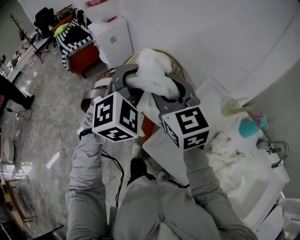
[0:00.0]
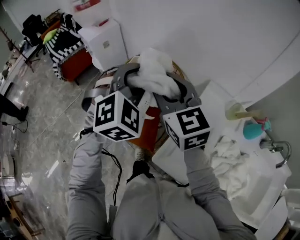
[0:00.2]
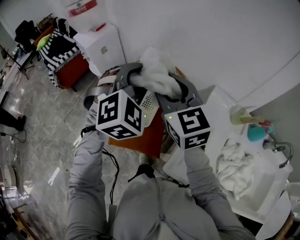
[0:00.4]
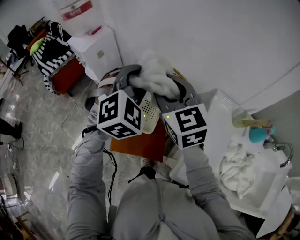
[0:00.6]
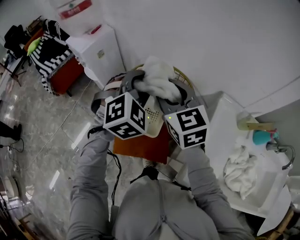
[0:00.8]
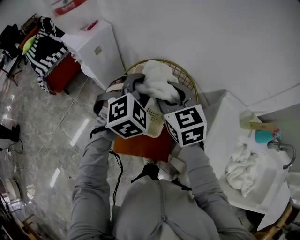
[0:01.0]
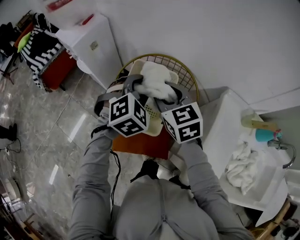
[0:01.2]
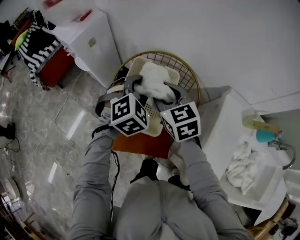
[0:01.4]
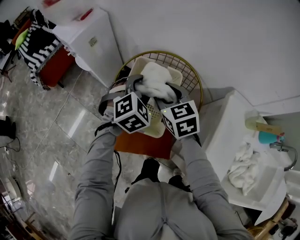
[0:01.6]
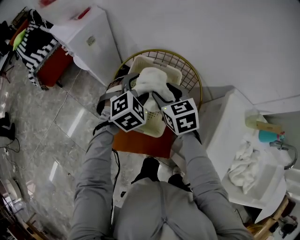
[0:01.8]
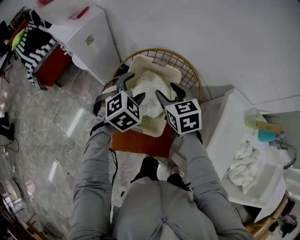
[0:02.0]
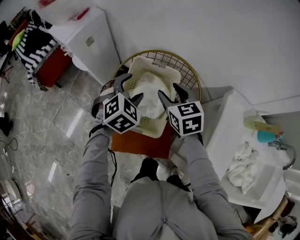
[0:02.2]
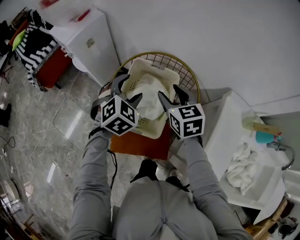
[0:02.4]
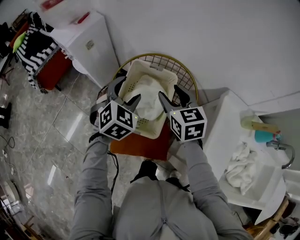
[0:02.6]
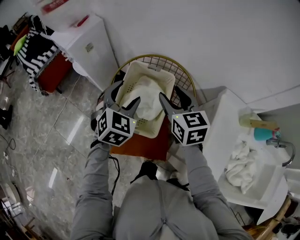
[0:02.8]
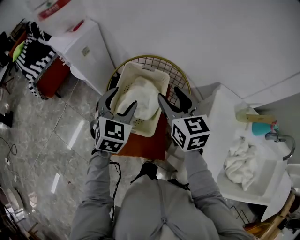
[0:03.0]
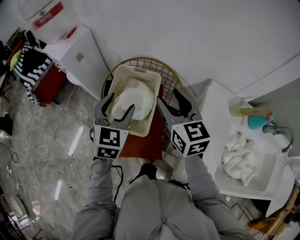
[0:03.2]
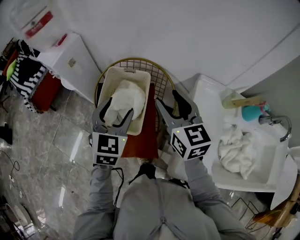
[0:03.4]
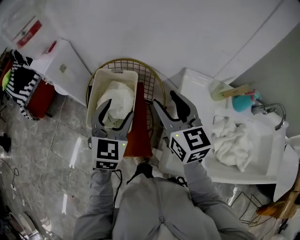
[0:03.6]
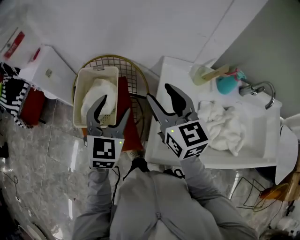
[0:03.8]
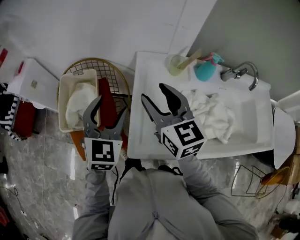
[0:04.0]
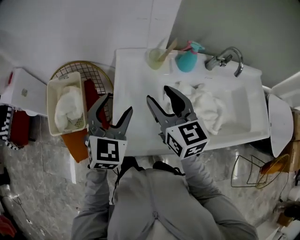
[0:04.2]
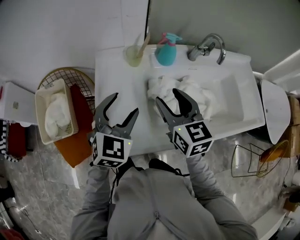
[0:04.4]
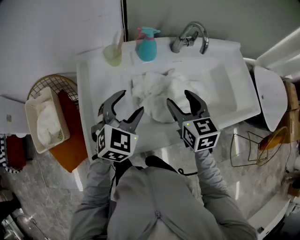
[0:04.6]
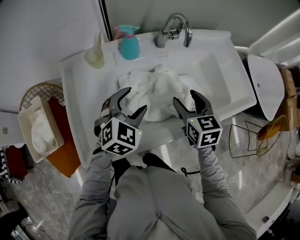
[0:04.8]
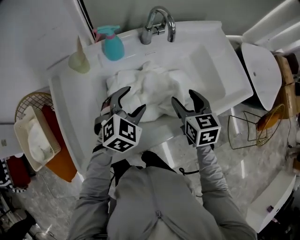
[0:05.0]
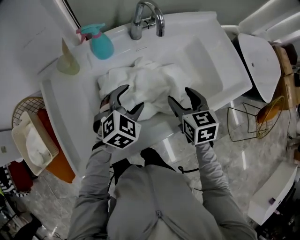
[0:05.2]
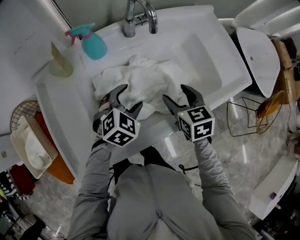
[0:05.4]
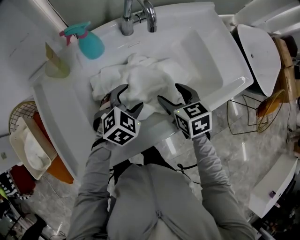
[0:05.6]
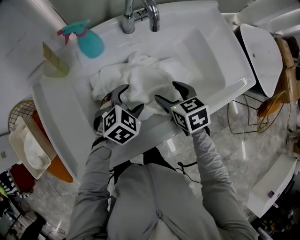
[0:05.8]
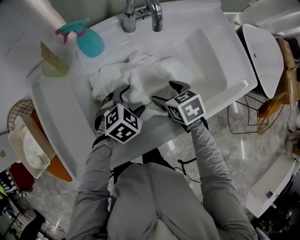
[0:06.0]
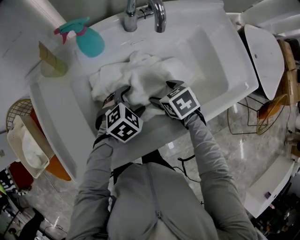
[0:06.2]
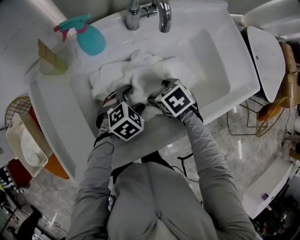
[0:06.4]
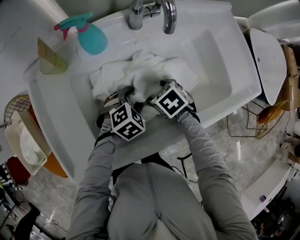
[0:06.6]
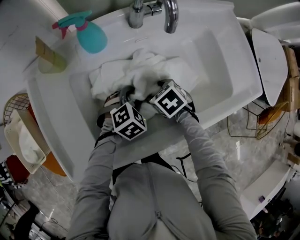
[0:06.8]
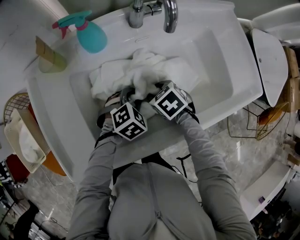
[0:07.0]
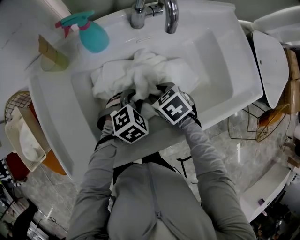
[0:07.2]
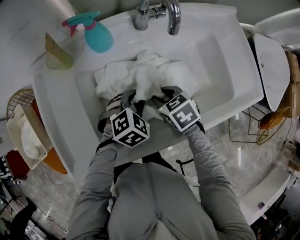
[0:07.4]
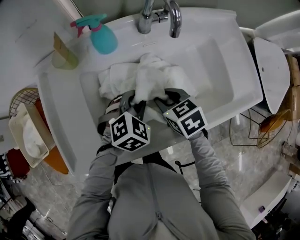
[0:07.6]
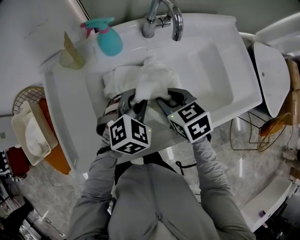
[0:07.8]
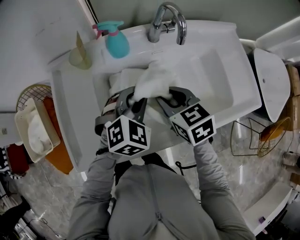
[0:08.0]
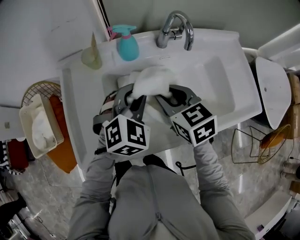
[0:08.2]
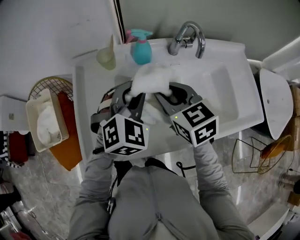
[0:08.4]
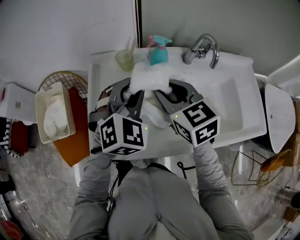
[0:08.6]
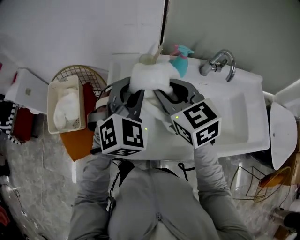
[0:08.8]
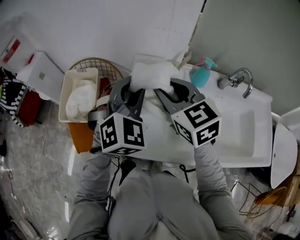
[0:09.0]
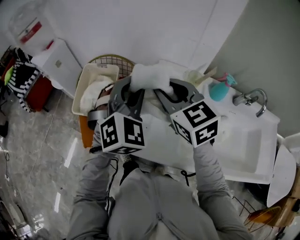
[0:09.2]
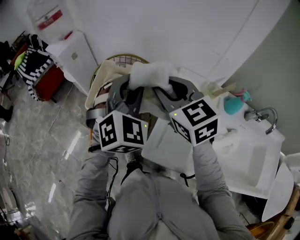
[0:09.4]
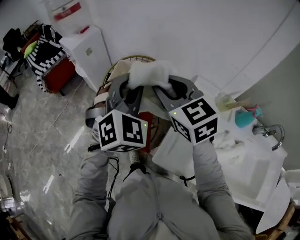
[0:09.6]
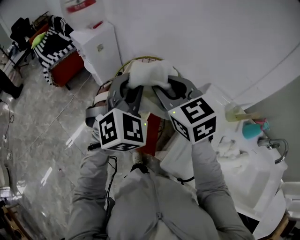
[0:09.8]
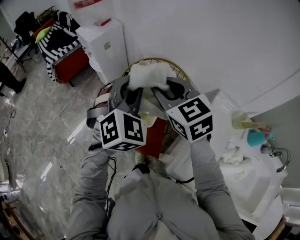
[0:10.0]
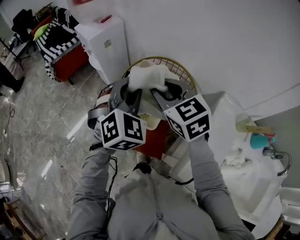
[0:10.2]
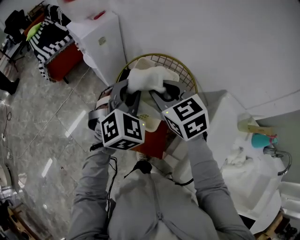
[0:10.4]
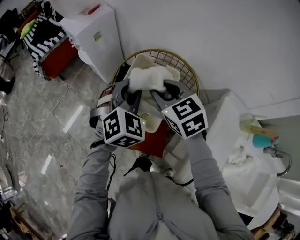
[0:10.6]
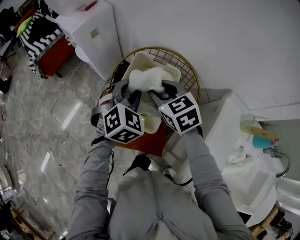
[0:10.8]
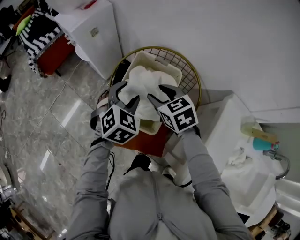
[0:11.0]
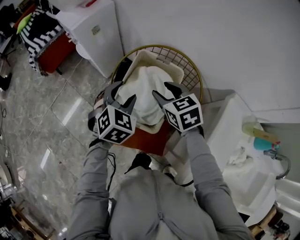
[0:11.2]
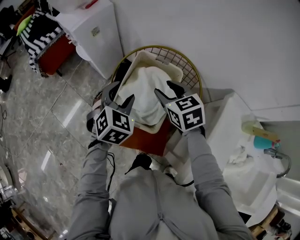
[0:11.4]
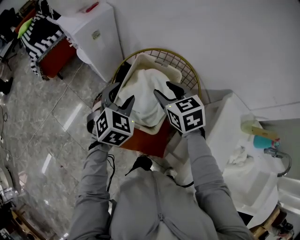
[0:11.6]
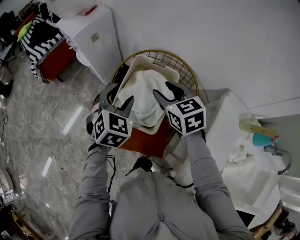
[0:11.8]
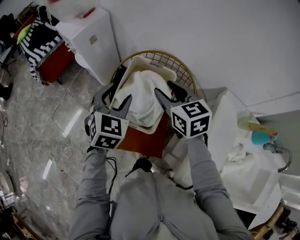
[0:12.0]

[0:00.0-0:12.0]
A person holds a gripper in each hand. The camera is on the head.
0:00.0 to 0:01.6: Both grippers move forward, downward and to the left, about 35 cm. The left gripper rotates approximately 30 degrees. Meanwhile the right gripper changes its angle by approximately 30 degrees.
0:01.6 to 0:03.0: The right gripper shifts approximately 10 cm upward and to the right. The left gripper shifts about 10 cm upward and backward, and turns by roughly 30 degrees.
0:03.0 to 0:04.4: The pair of grippers is taken roughly 50 cm. The right gripper rotates about 30 degrees; the left gripper swivels roughly 40 degrees.
0:04.4 to 0:06.0: The grippers both shift to the right and downward by roughly 30 cm. The right gripper tilts its fingers approximately 40 degrees downward. The left gripper rotates some 40 degrees.
0:06.0 to 0:07.6: The right gripper goes downward and returns, about 5 cm each way, and closes. The left gripper closes up.
0:07.6 to 0:09.0: The right gripper shifts by roughly 40 cm, and angles its fingers upward, by roughly 30 degrees; the left gripper ends up roughly 40 cm from where it was, and turns by approximately 50 degrees.
0:09.0 to 0:10.4: Both grippers are carried approximately 40 cm. The right gripper turns by some 30 degrees, while the left gripper turns by about 30 degrees.
0:10.4 to 0:12.0: The left gripper heads downward, covering about 5 cm, and opens its fingers.

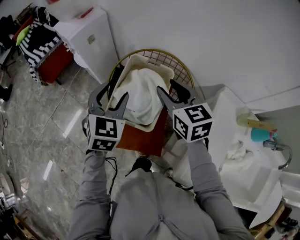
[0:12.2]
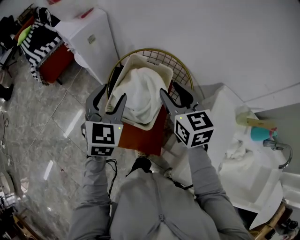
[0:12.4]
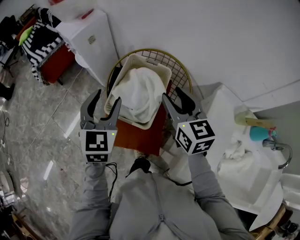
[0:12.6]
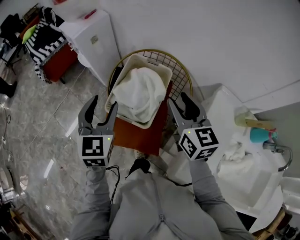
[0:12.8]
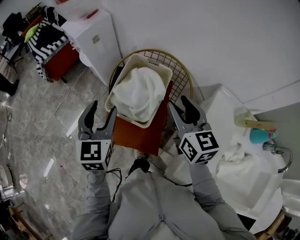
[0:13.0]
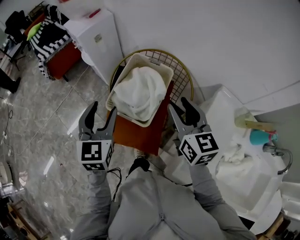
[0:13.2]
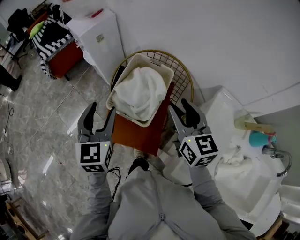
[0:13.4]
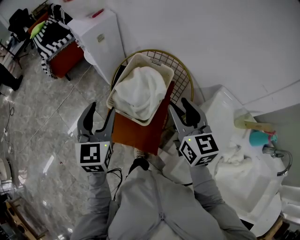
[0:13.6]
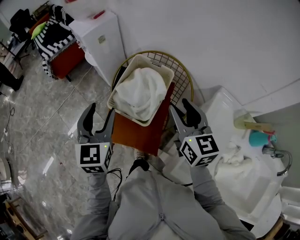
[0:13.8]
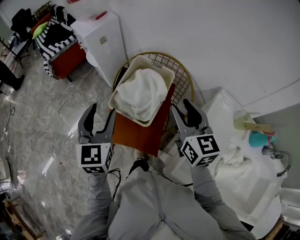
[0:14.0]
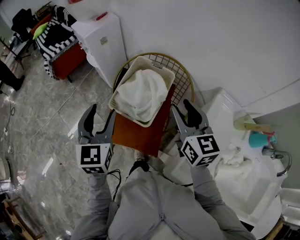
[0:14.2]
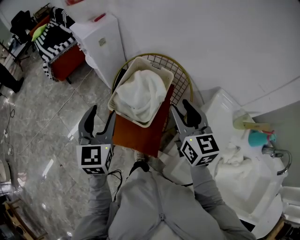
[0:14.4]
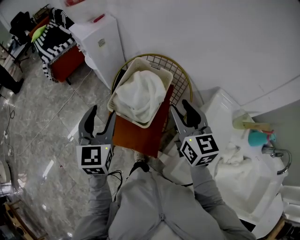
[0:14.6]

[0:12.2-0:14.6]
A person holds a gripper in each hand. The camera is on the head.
0:12.2 to 0:13.4: Both grippers travel together backward, some 10 cm. The left gripper turns by about 20 degrees.
0:13.4 to 0:14.6: The grippers stay close to where they were, moving slightly.

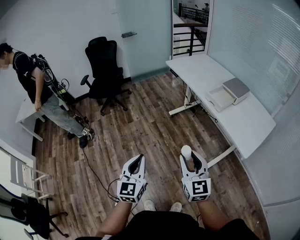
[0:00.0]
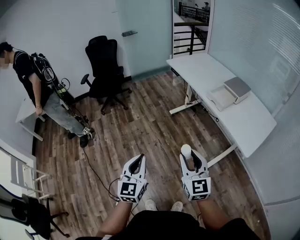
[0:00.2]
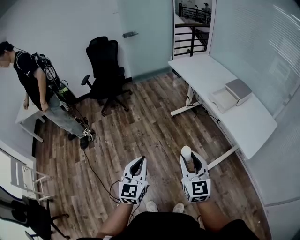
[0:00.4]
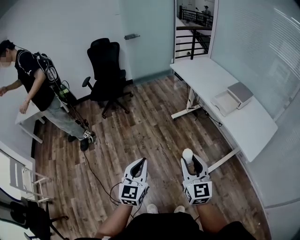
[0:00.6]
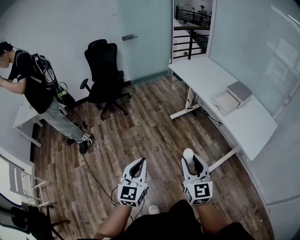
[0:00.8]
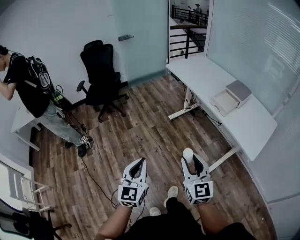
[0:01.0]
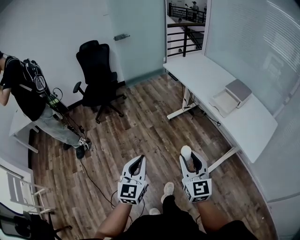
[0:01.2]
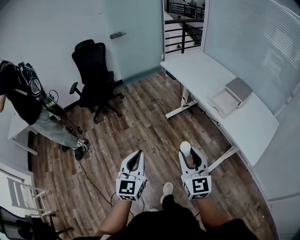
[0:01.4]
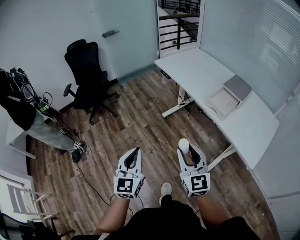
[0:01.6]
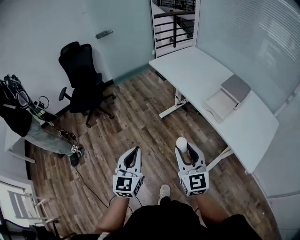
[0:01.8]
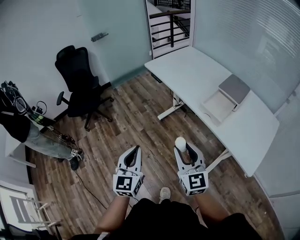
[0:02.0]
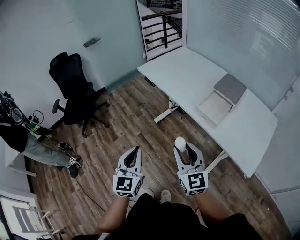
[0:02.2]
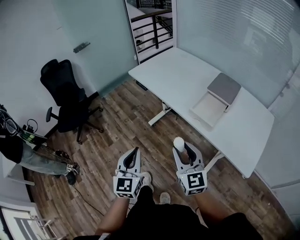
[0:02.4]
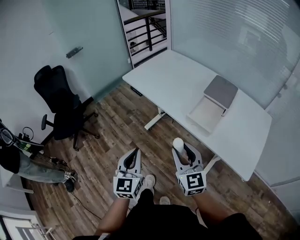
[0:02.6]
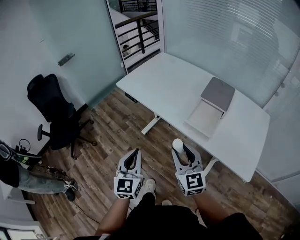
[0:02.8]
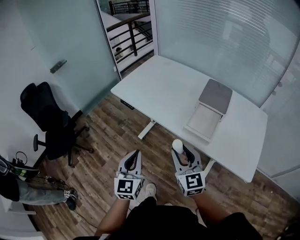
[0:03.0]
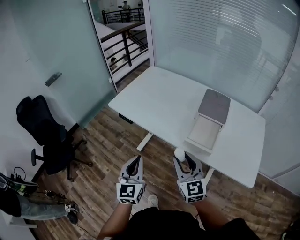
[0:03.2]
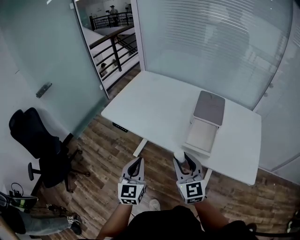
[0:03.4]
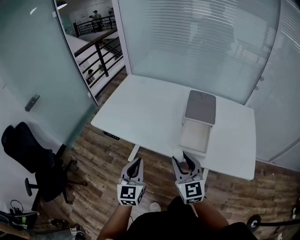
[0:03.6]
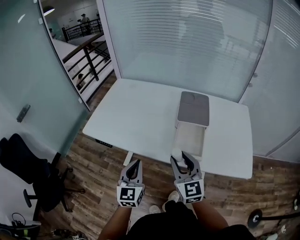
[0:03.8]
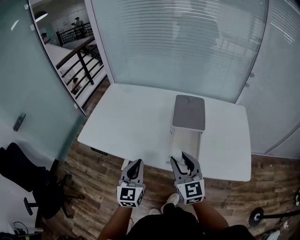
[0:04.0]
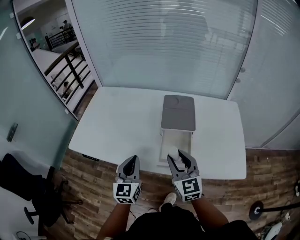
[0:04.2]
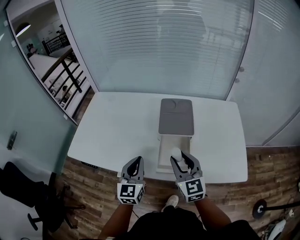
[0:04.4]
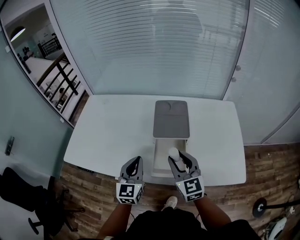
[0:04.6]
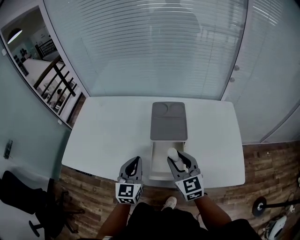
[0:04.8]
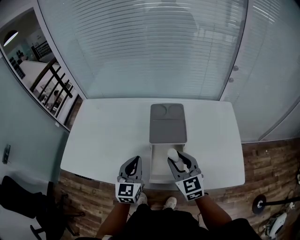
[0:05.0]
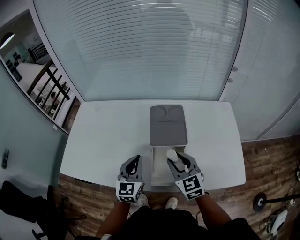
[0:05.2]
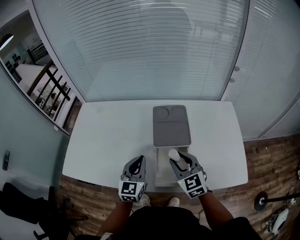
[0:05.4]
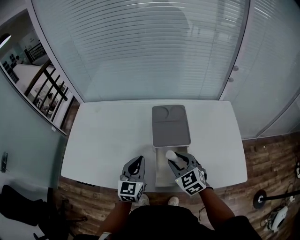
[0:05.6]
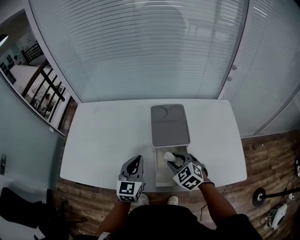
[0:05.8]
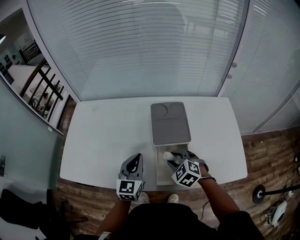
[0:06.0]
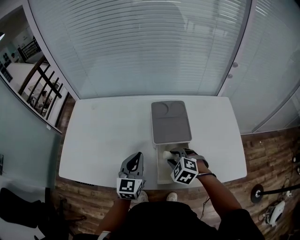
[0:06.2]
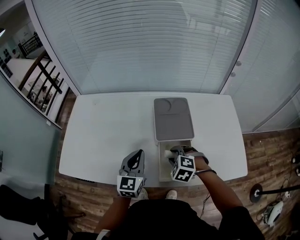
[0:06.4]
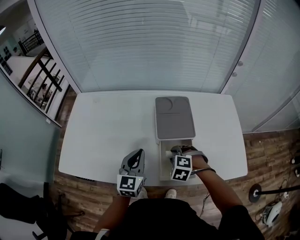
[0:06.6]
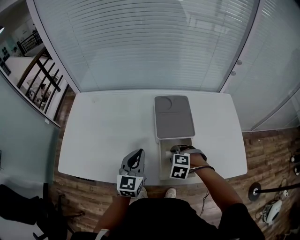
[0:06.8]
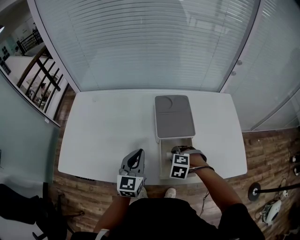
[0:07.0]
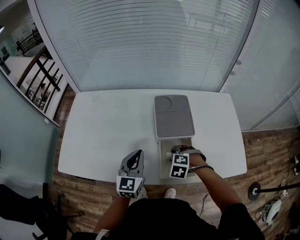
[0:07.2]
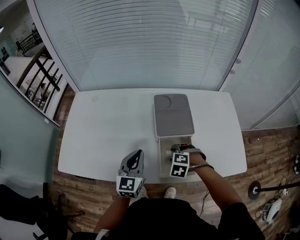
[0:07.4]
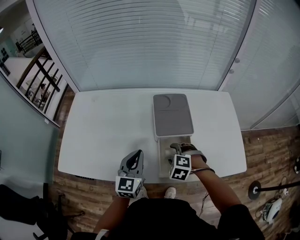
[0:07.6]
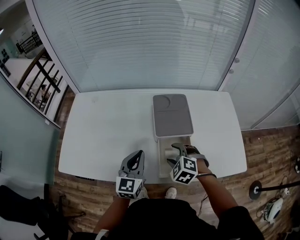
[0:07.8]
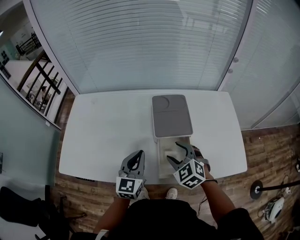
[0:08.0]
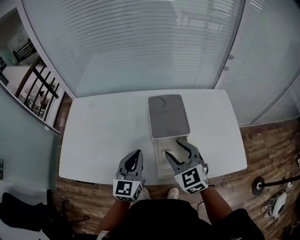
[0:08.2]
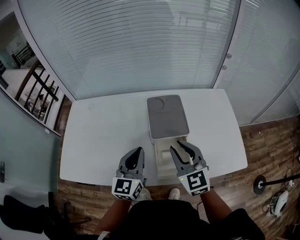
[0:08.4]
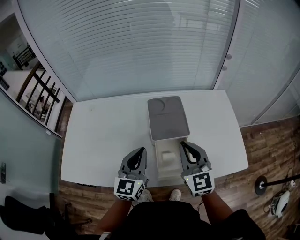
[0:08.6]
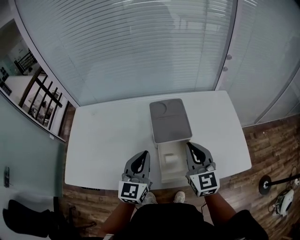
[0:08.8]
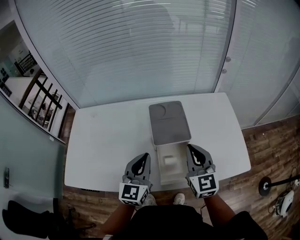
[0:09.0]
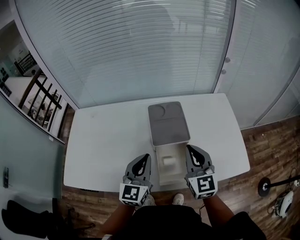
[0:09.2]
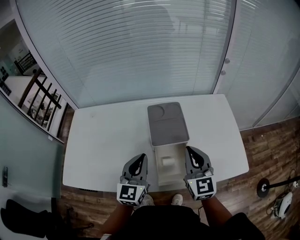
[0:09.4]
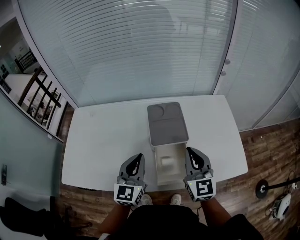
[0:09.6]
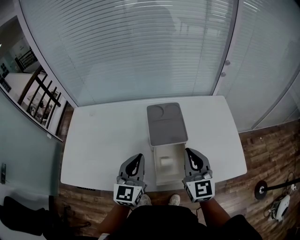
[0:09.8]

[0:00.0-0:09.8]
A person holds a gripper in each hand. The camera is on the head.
0:00.0 to 0:01.4: Both grippers travel together forward, some 15 cm.
0:01.4 to 0:02.8: Both grippers move forward and to the right, some 30 cm.
0:02.8 to 0:04.2: The right gripper ends up roughly 20 cm from where it was, and rotates roughly 30 degrees, while the left gripper shifts by some 30 cm, and turns by some 30 degrees.
0:04.2 to 0:05.6: The right gripper shifts some 10 cm forward and downward, and swivels about 30 degrees. Meanwhile the left gripper shifts some 15 cm forward and to the right.
0:05.6 to 0:07.0: The right gripper travels downward by some 10 cm, and tilts its fingers some 40 degrees downward.
0:07.0 to 0:08.4: The right gripper travels upward by roughly 25 cm, tilts its fingers approximately 60 degrees upward, and opens, then closes again; the left gripper moves upward, about 5 cm.
0:08.4 to 0:09.8: The right gripper heads to the right, covering some 5 cm, and closes up.
